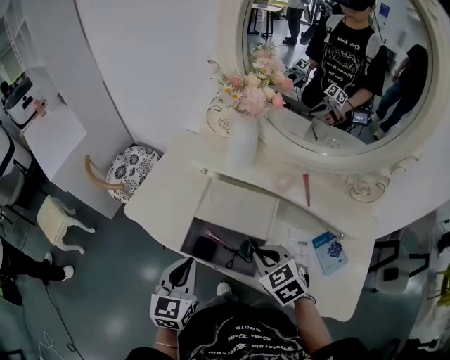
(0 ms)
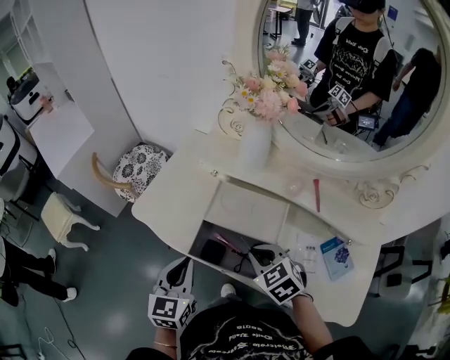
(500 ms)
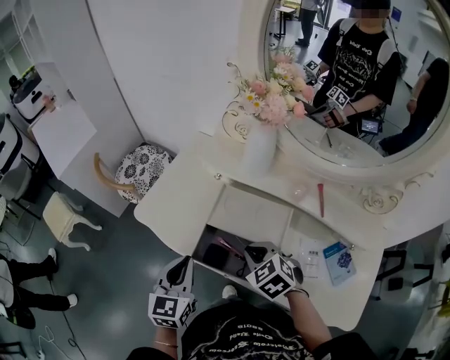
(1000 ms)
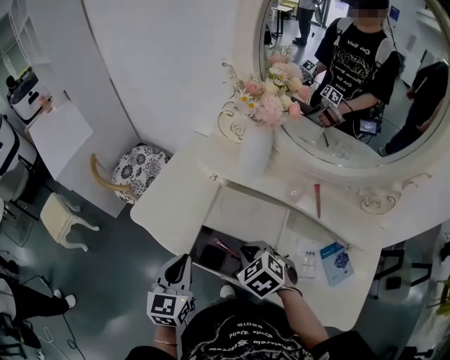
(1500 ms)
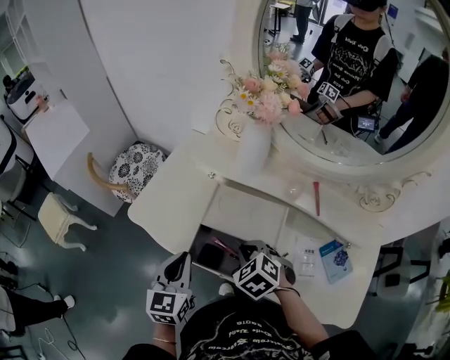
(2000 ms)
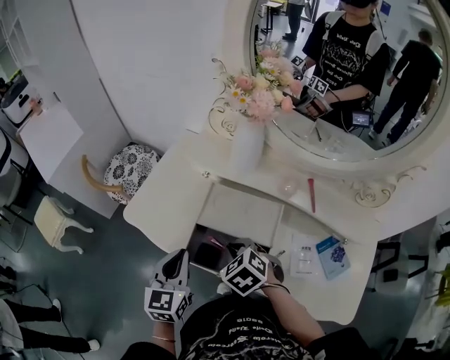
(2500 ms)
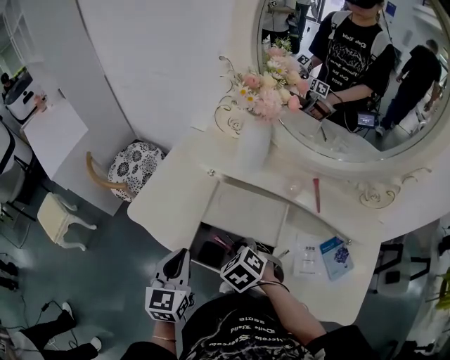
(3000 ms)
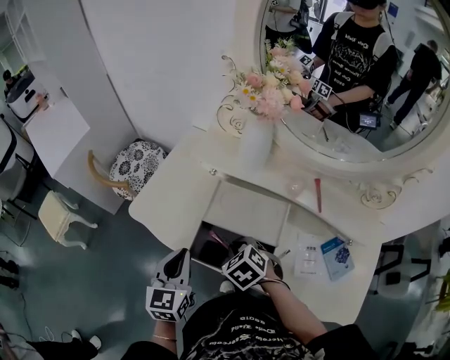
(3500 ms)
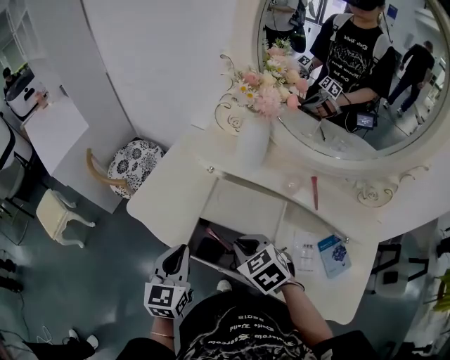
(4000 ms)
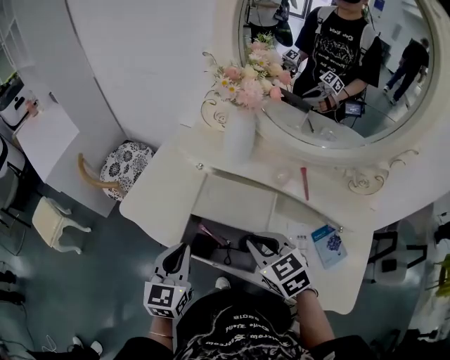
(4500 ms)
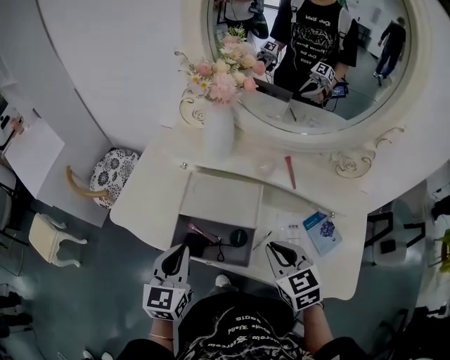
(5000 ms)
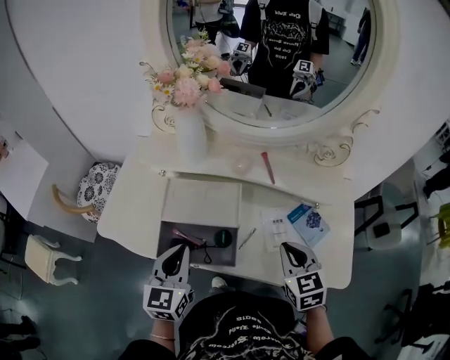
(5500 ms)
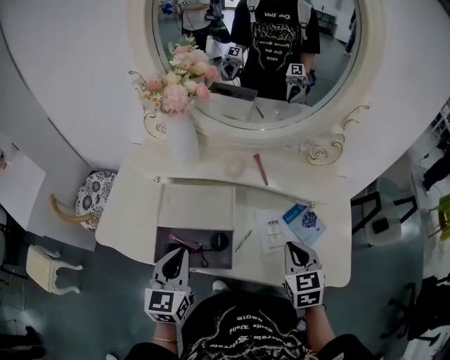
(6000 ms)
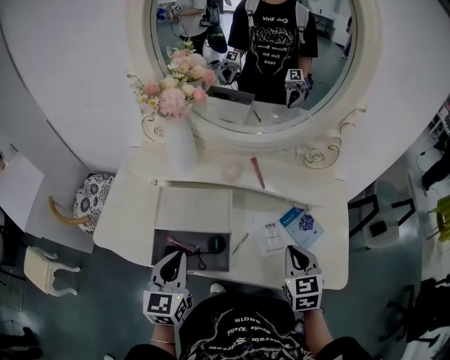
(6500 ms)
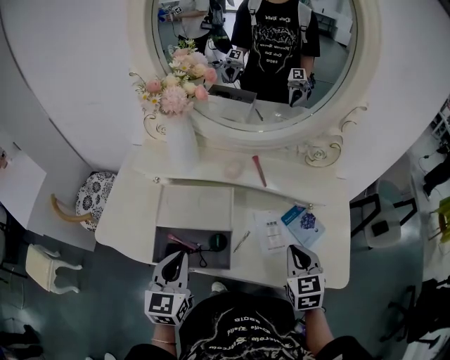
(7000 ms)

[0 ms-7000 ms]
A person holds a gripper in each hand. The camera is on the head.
0 ms to 2000 ms: The left gripper moves approximately 5 cm, while the right gripper moves to the left and forward, approximately 5 cm.
2000 ms to 3500 ms: There are only small adjustments of the grippers.
3500 ms to 5000 ms: The right gripper moves to the right, upward and backward, some 20 cm, and changes its angle by roughly 40 degrees; the left gripper moves to the right, roughly 5 cm.
5000 ms to 7000 ms: The left gripper is displaced to the right by about 5 cm. Meanwhile the right gripper shifts approximately 15 cm to the right, and changes its angle by about 30 degrees.

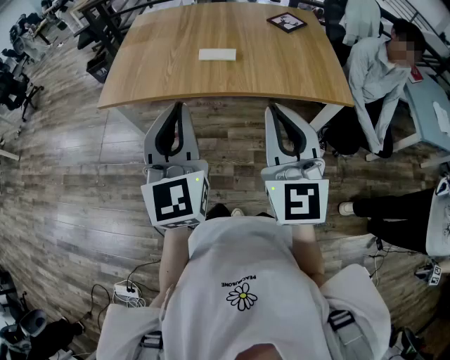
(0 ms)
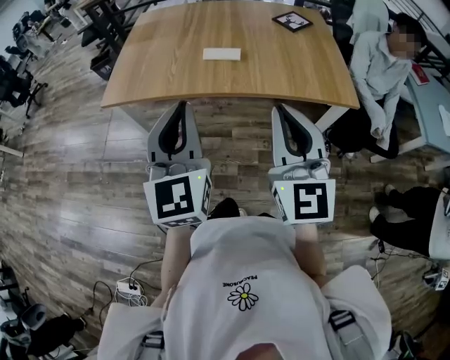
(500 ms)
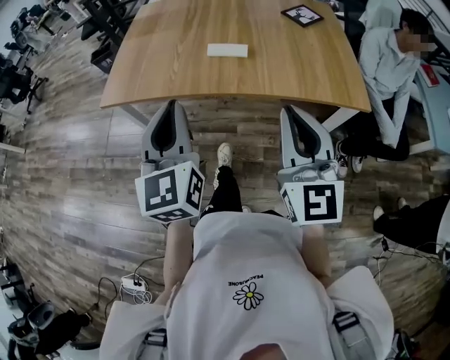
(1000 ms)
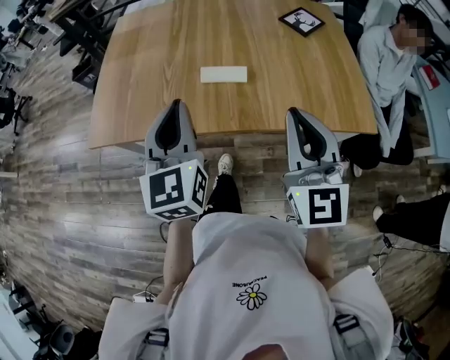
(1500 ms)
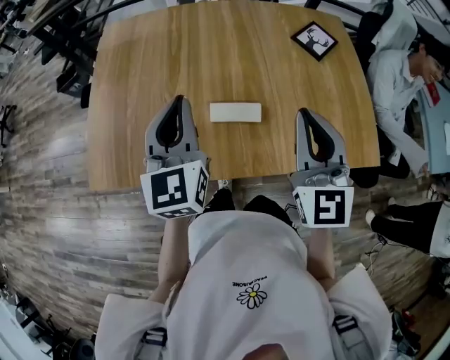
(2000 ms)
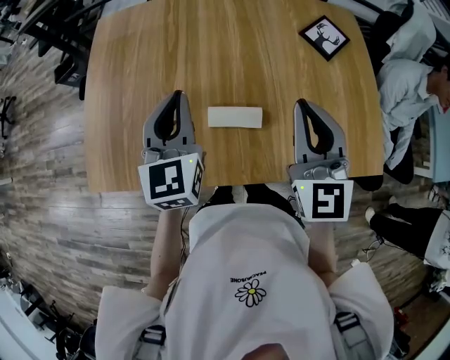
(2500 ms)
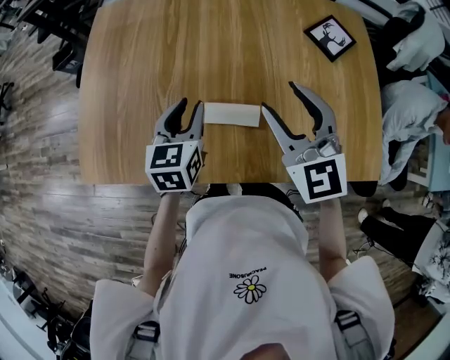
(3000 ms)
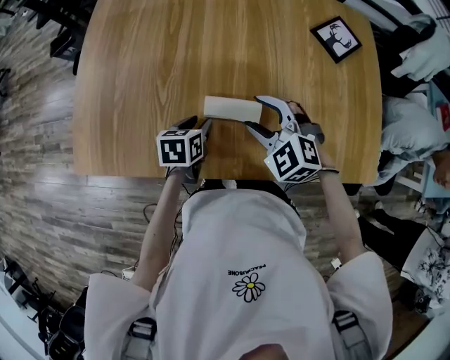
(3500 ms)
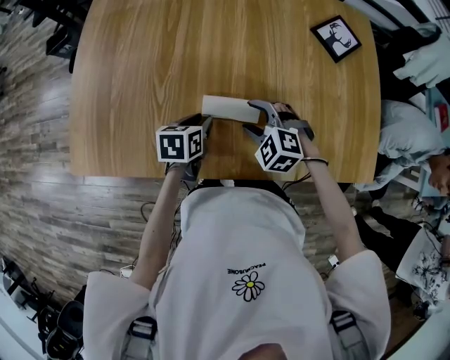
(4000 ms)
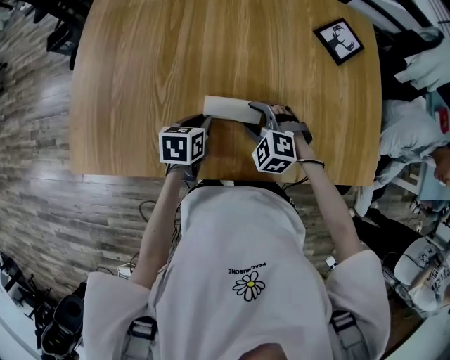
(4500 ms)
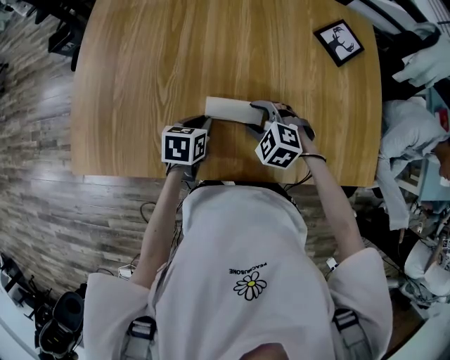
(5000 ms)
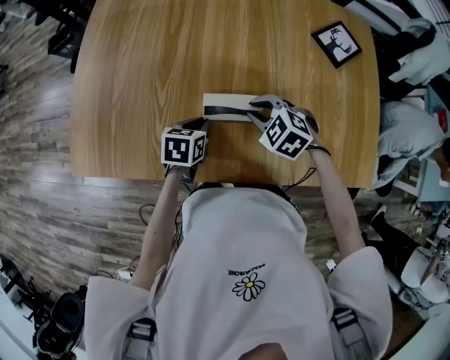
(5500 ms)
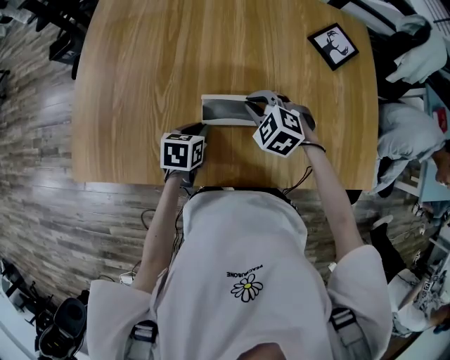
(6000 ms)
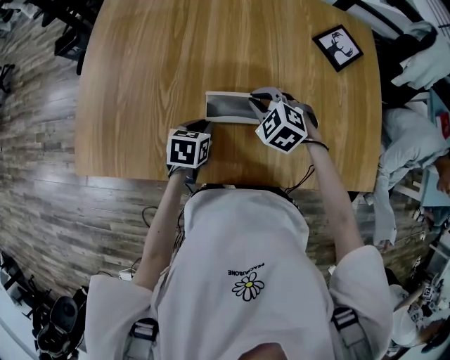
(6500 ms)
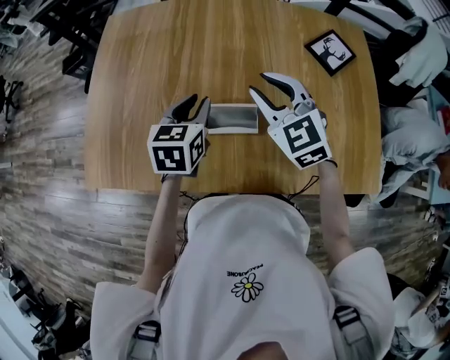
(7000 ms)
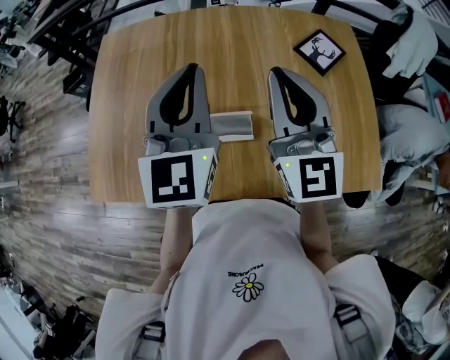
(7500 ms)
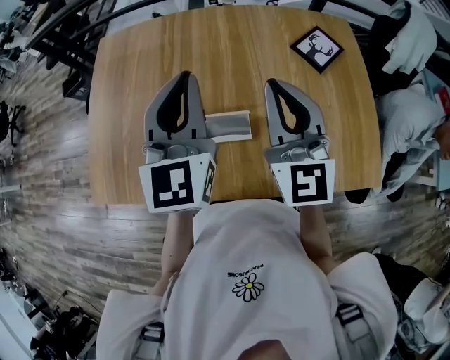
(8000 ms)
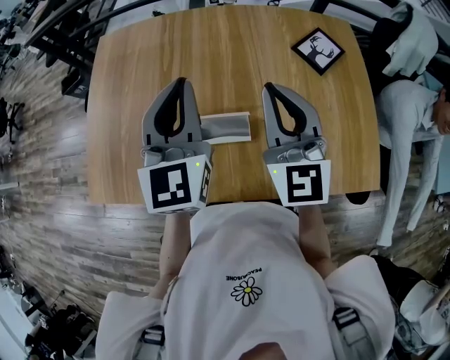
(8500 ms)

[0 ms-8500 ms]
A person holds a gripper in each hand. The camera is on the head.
0 ms to 2000 ms: Both grippers travel together forward, roughly 40 cm.
2000 ms to 4000 ms: Both grippers move downward, about 30 cm. The left gripper angles its fingers downward, by roughly 40 degrees, and opens up; the right gripper angles its fingers downward, by some 50 degrees, and opens.
4000 ms to 6500 ms: The right gripper heads forward, covering some 5 cm, and closes.
6500 ms to 8500 ms: The two grippers go roughly 30 cm upward. The left gripper angles its fingers upward, by about 50 degrees. The right gripper tips its fingers upward by some 60 degrees, and opens, then closes once more.

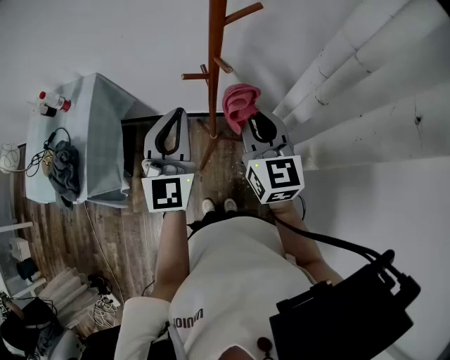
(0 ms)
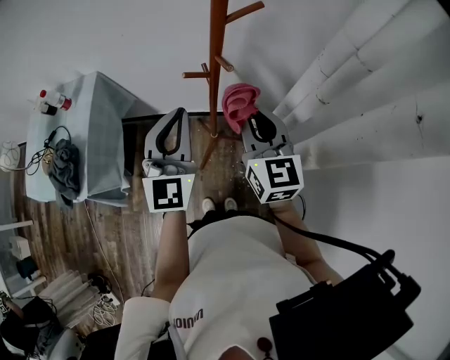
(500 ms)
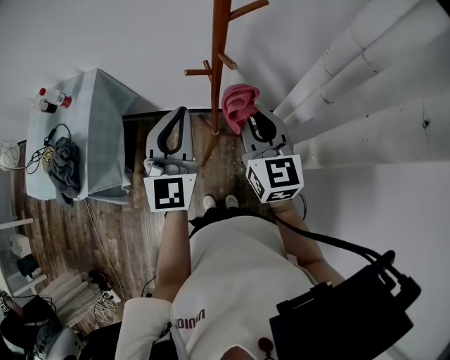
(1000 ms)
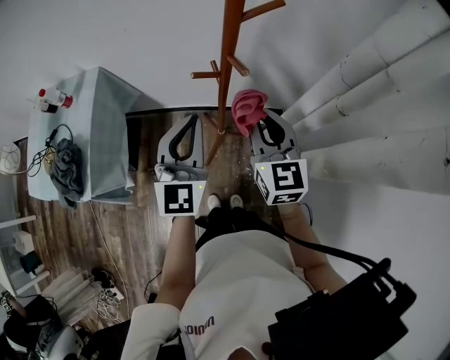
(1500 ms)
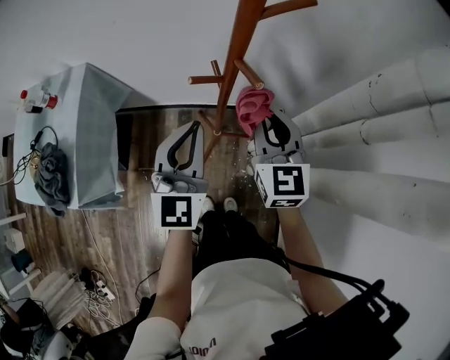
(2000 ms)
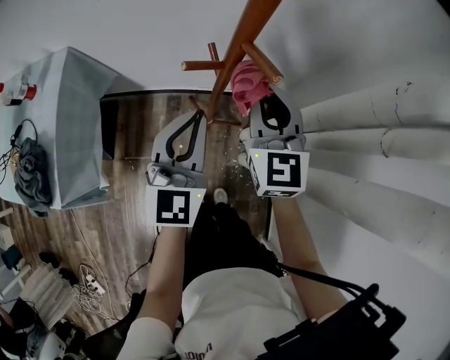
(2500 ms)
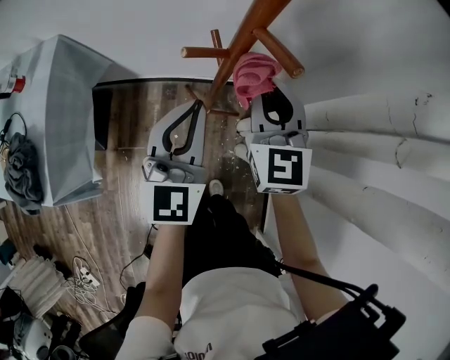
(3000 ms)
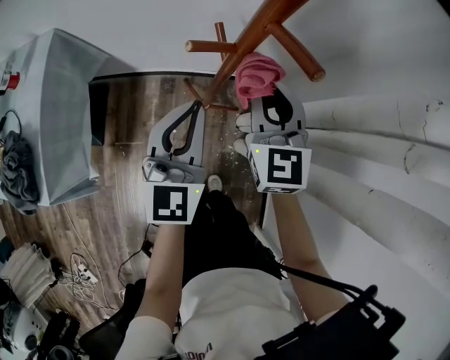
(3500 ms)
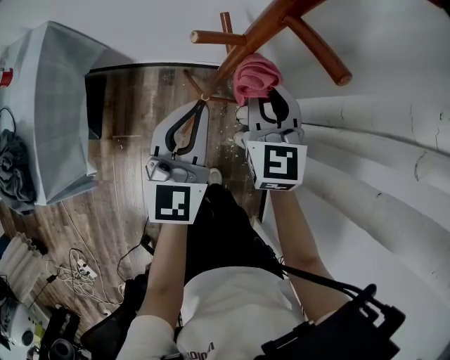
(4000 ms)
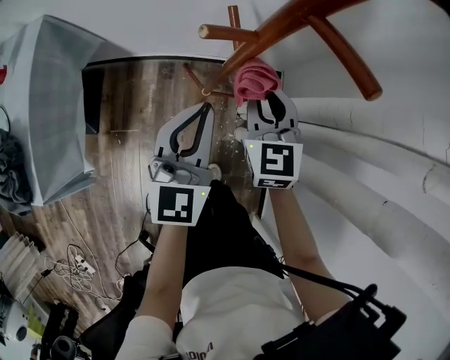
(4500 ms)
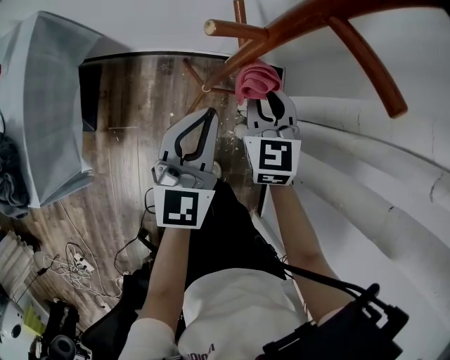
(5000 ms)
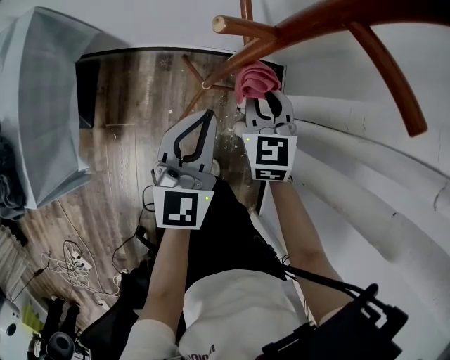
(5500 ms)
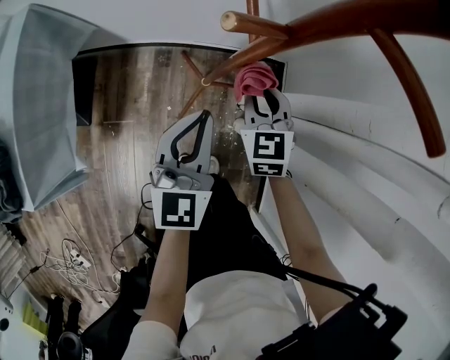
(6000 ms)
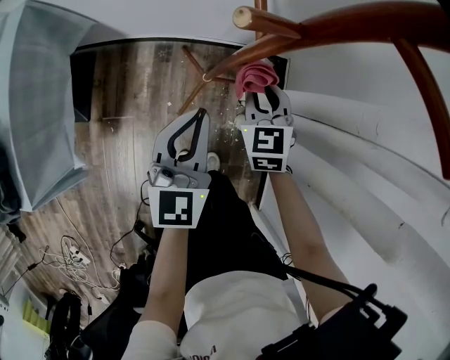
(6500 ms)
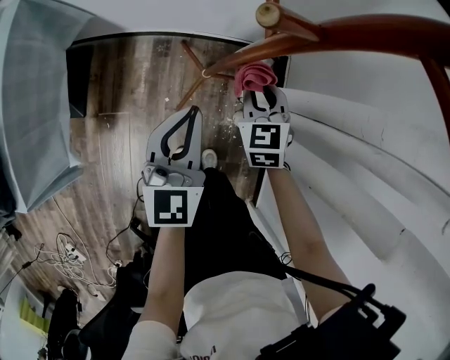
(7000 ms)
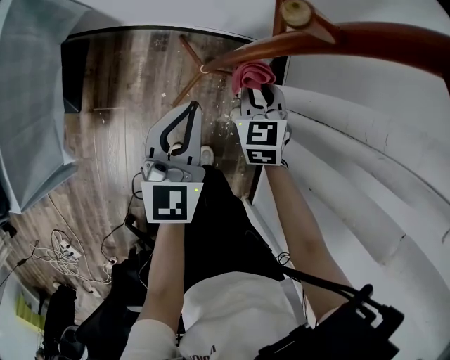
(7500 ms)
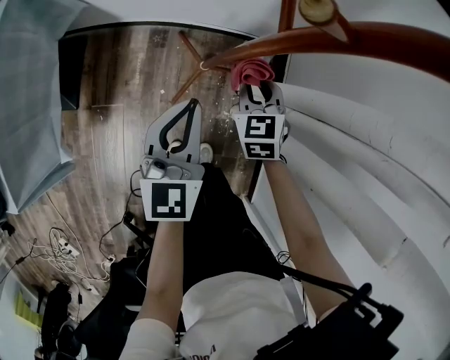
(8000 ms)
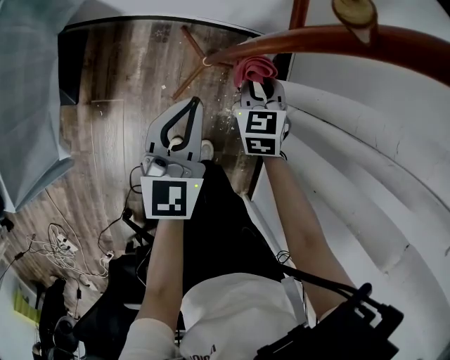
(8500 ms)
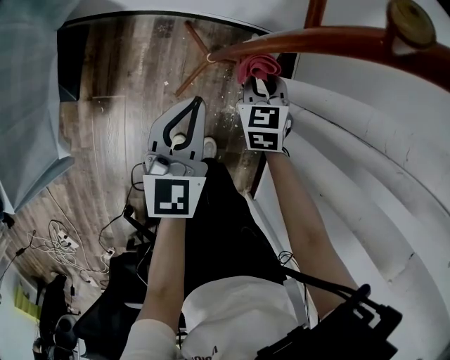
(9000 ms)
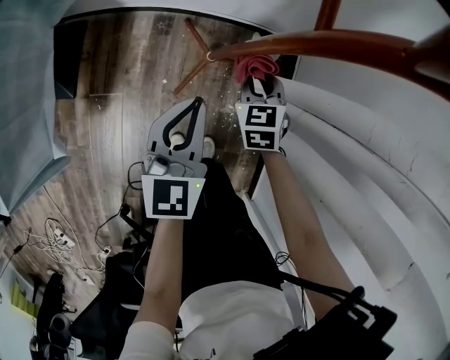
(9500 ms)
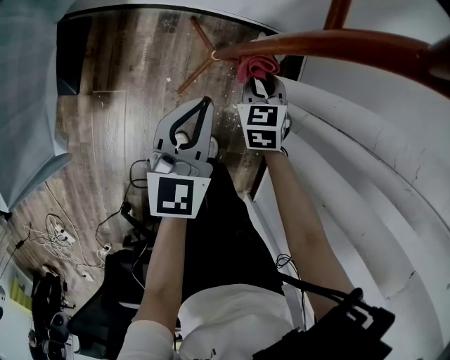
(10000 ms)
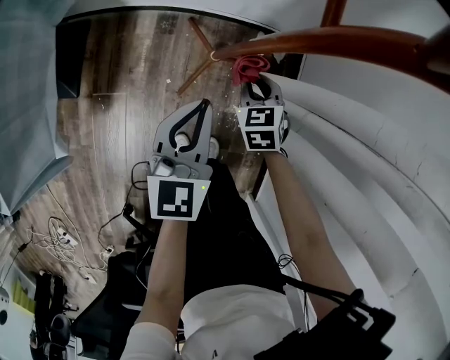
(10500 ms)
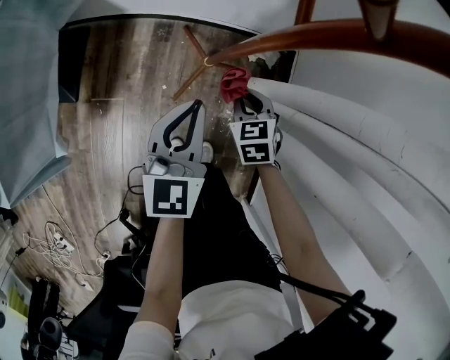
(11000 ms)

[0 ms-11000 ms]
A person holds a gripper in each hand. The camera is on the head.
0 ms to 2000 ms: The right gripper shifts approximately 10 cm forward and downward. The left gripper heads downward and forward, covering roughly 10 cm.
2000 ms to 3500 ms: The two grippers go about 5 cm downward.
3500 ms to 5500 ms: The right gripper shifts approximately 15 cm downward. Meanwhile the left gripper moves downward, approximately 10 cm.
5500 ms to 7500 ms: The left gripper moves downward, approximately 5 cm. The right gripper moves downward, some 10 cm.
7500 ms to 9000 ms: The right gripper travels downward by approximately 5 cm.
9000 ms to 11000 ms: The right gripper shifts about 5 cm backward.
